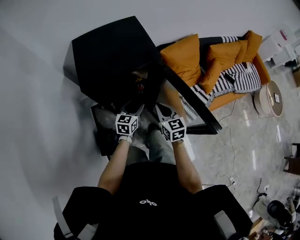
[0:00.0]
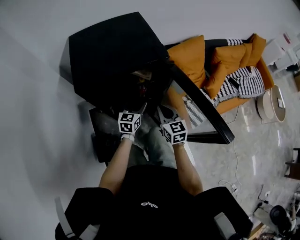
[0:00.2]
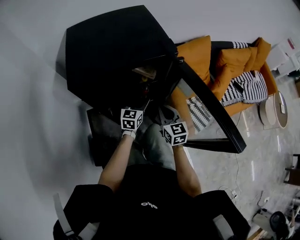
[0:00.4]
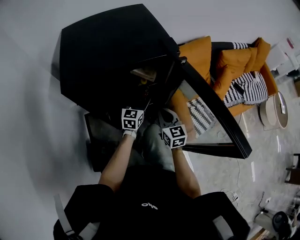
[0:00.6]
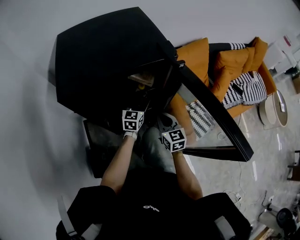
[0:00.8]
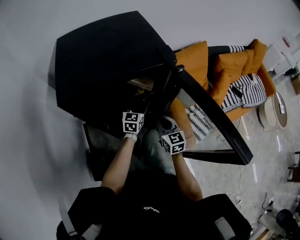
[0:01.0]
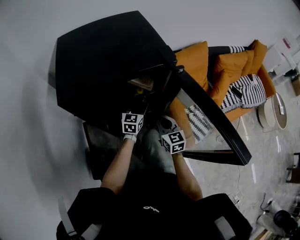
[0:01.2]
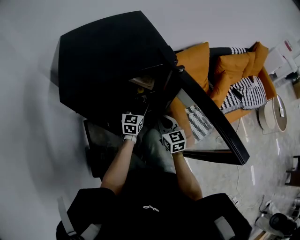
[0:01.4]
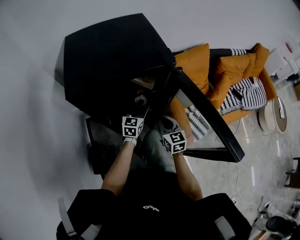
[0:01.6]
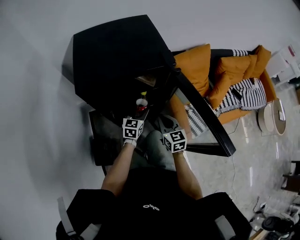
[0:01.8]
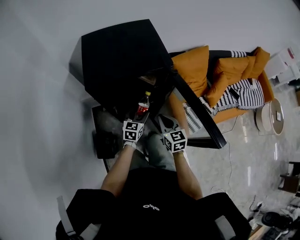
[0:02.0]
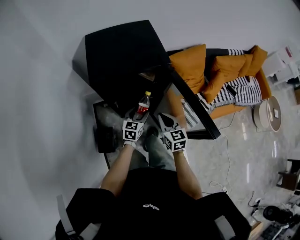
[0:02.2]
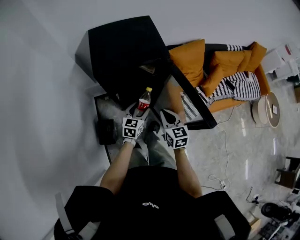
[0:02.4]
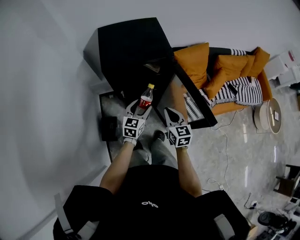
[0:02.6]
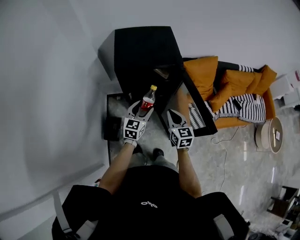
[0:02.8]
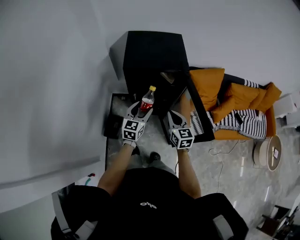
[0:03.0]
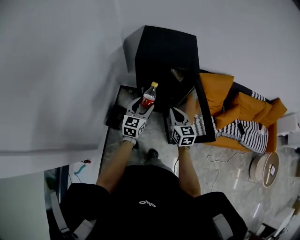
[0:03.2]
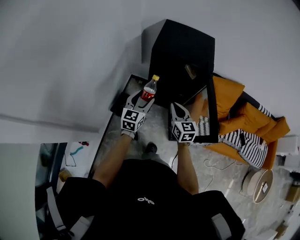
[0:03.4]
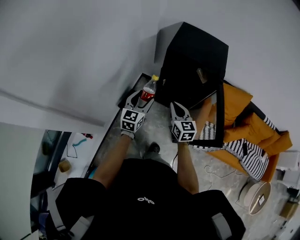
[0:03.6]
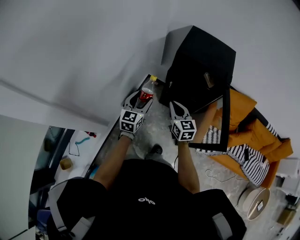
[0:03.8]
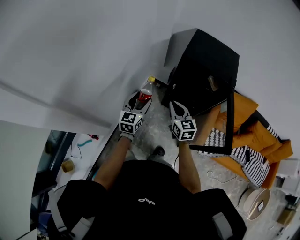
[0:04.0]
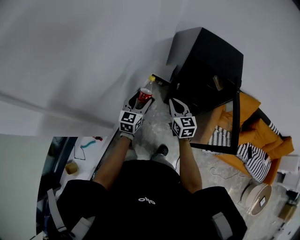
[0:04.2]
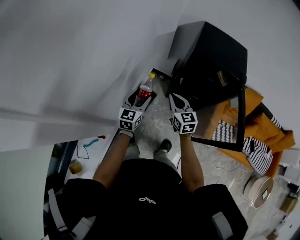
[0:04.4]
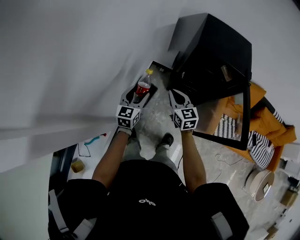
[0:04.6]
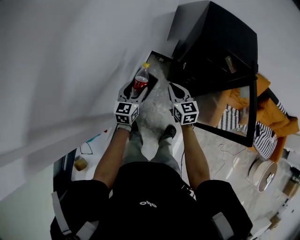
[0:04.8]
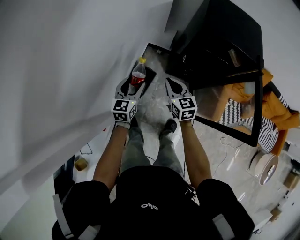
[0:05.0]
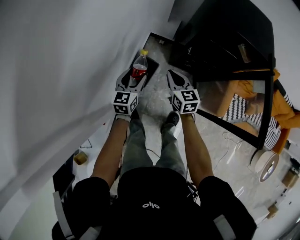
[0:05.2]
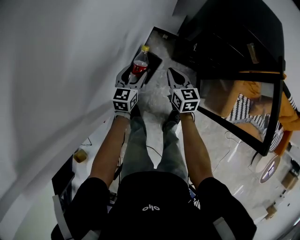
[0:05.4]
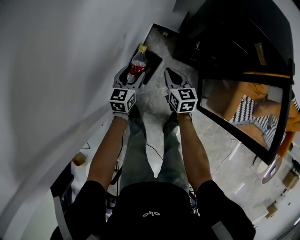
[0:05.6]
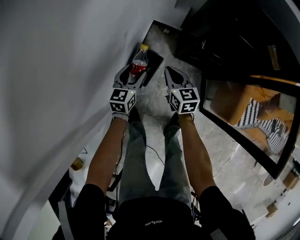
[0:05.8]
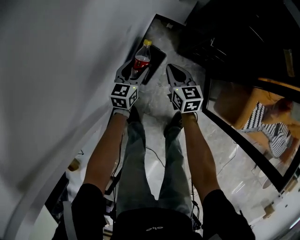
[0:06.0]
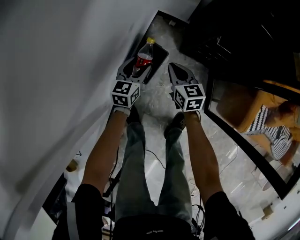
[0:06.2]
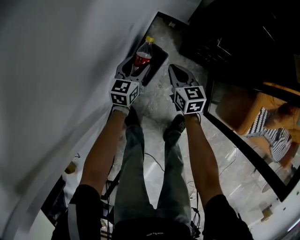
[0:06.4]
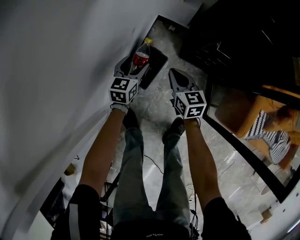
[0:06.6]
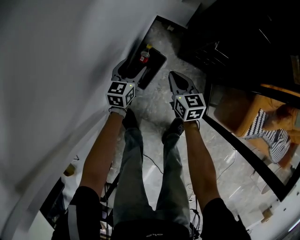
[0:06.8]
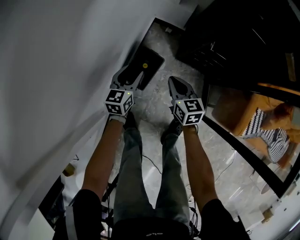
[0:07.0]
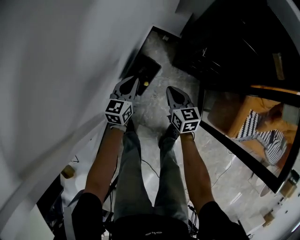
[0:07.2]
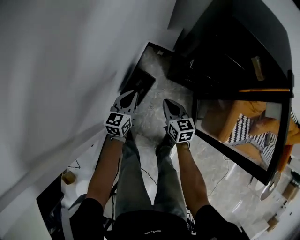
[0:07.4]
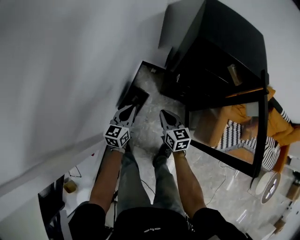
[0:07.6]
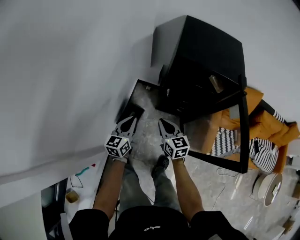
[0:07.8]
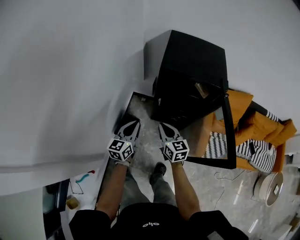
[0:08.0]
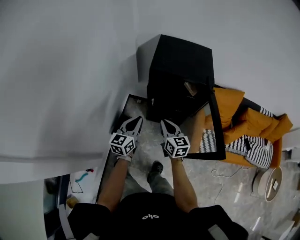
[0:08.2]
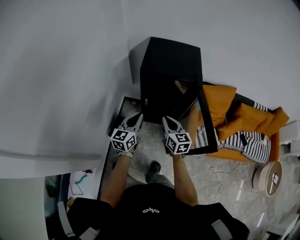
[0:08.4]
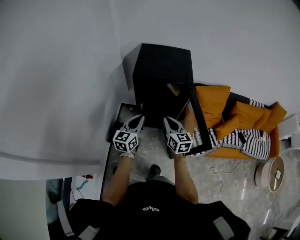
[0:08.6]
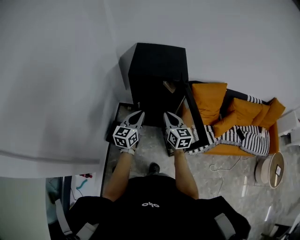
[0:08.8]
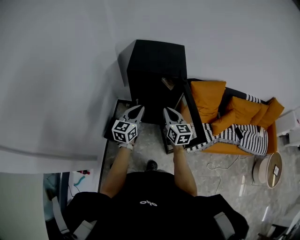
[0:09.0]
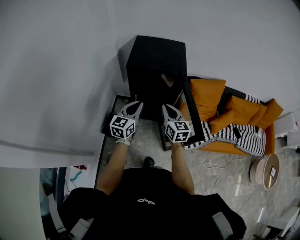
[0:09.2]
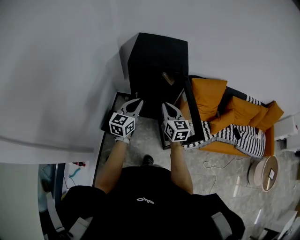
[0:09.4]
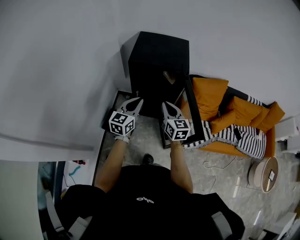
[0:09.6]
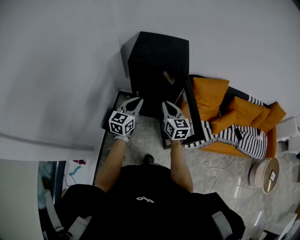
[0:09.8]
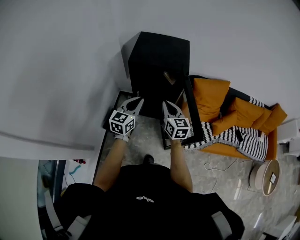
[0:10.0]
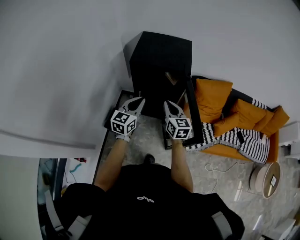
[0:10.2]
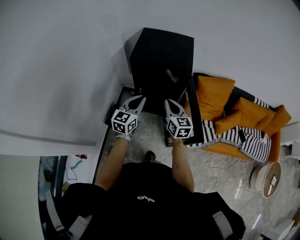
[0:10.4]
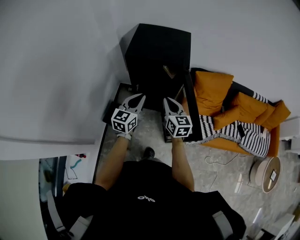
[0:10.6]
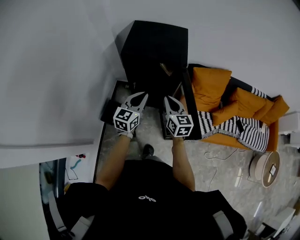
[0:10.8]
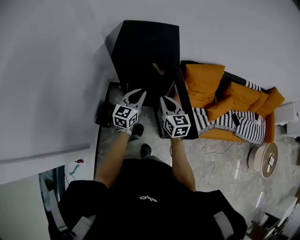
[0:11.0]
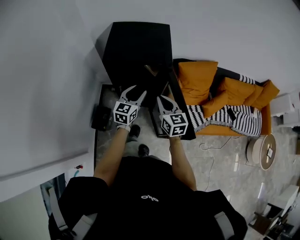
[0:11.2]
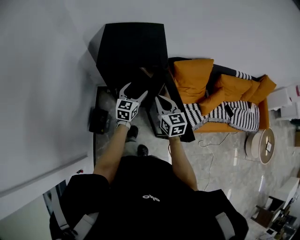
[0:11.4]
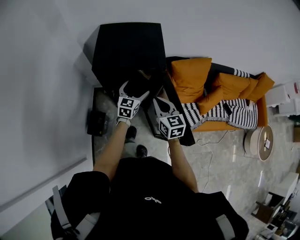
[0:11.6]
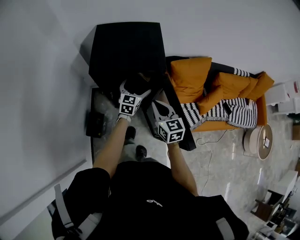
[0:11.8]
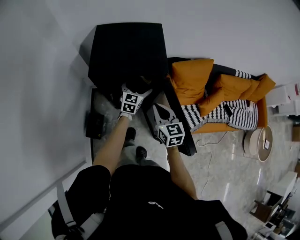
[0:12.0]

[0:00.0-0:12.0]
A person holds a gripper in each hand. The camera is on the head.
0:00.0 to 0:01.6: The right gripper heads downward, covering about 15 cm. The left gripper goes approximately 15 cm downward and forward.
0:01.6 to 0:03.0: The two grippers go roughly 35 cm upward and backward.
0:03.0 to 0:04.4: The left gripper shifts by about 30 cm, and swivels roughly 20 degrees, while the right gripper ends up some 30 cm from where it was, and swivels some 30 degrees.
0:04.4 to 0:06.0: Both grippers travel together downward, roughly 40 cm.
0:06.0 to 0:07.6: The left gripper goes some 20 cm upward, and closes its fingers. Meanwhile the right gripper moves upward, backward and to the right, approximately 20 cm.
0:07.6 to 0:09.0: The grippers both shift upward and to the right by some 40 cm. The left gripper rotates some 20 degrees; the right gripper changes its angle by roughly 20 degrees.
0:09.0 to 0:10.4: The grippers move only a little.
0:10.4 to 0:12.0: The right gripper is displaced forward by approximately 10 cm, while the left gripper is displaced forward, downward and to the right by some 30 cm, and opens its fingers.

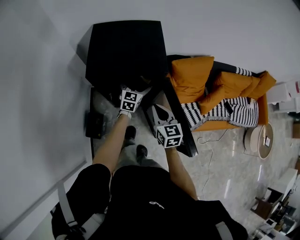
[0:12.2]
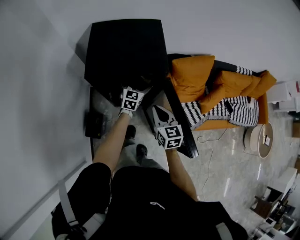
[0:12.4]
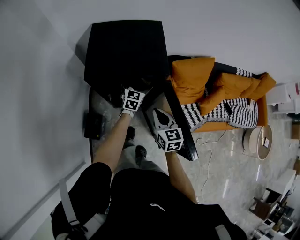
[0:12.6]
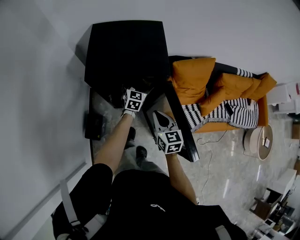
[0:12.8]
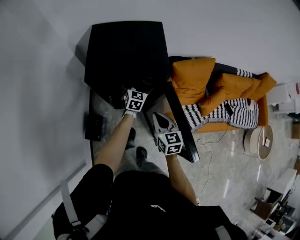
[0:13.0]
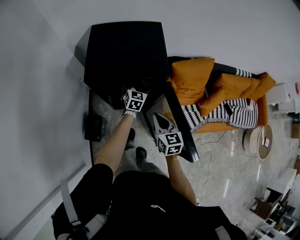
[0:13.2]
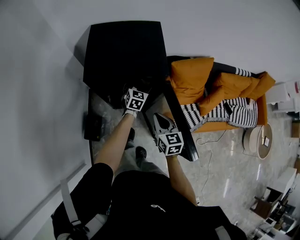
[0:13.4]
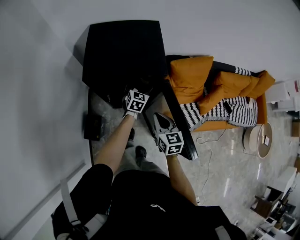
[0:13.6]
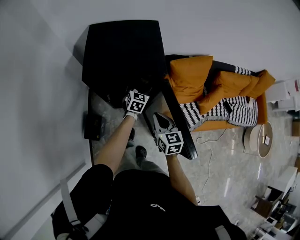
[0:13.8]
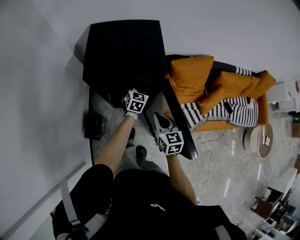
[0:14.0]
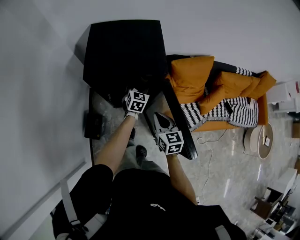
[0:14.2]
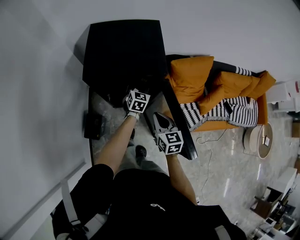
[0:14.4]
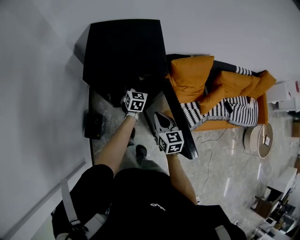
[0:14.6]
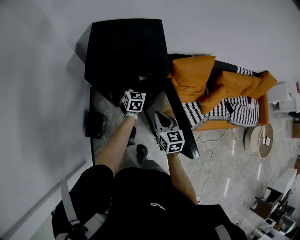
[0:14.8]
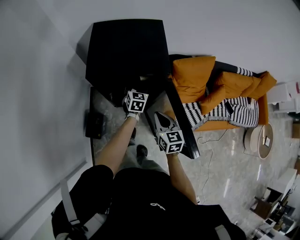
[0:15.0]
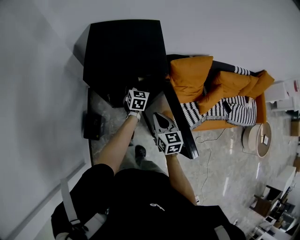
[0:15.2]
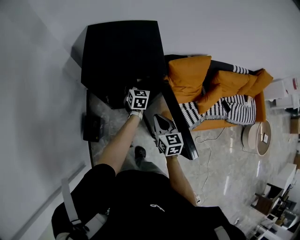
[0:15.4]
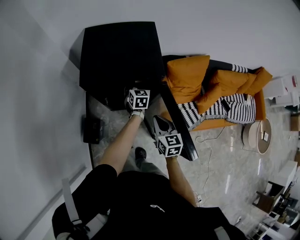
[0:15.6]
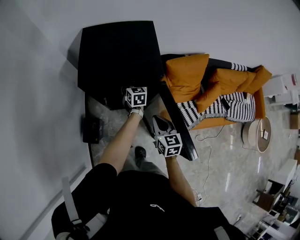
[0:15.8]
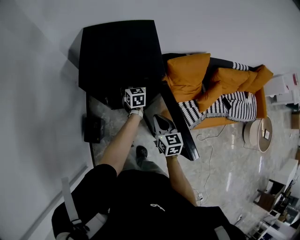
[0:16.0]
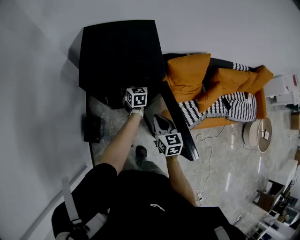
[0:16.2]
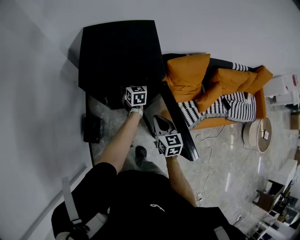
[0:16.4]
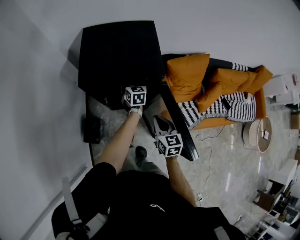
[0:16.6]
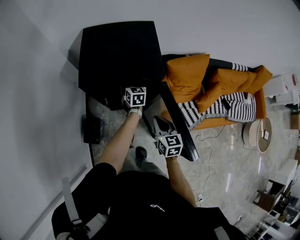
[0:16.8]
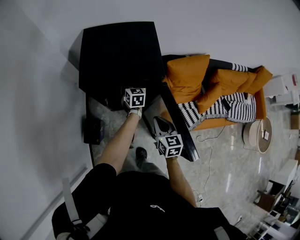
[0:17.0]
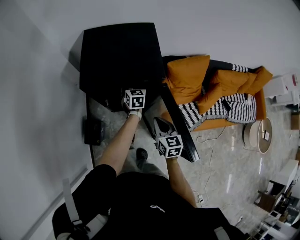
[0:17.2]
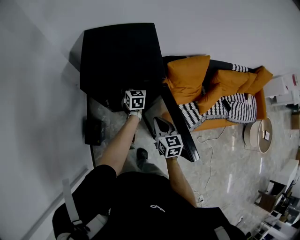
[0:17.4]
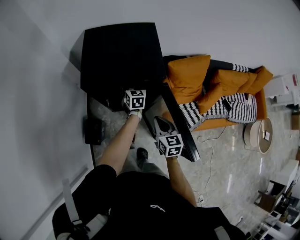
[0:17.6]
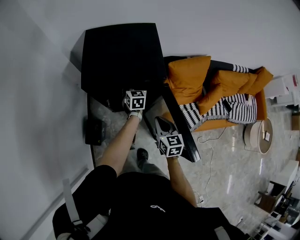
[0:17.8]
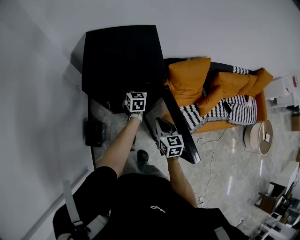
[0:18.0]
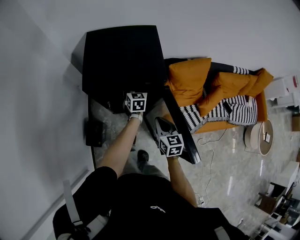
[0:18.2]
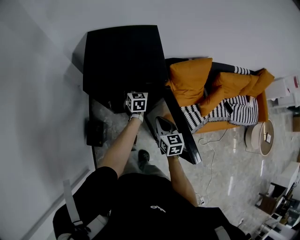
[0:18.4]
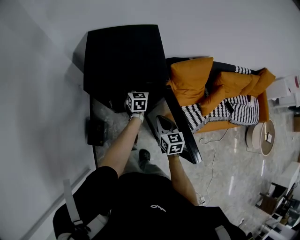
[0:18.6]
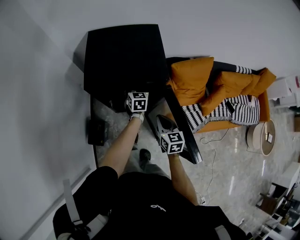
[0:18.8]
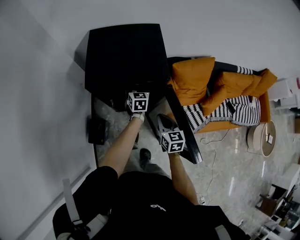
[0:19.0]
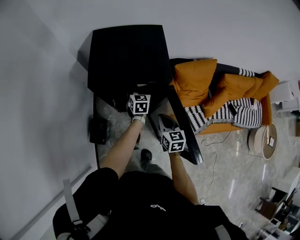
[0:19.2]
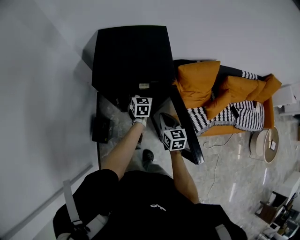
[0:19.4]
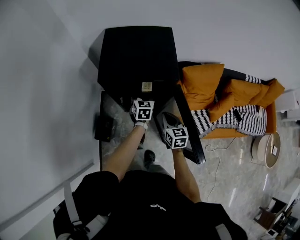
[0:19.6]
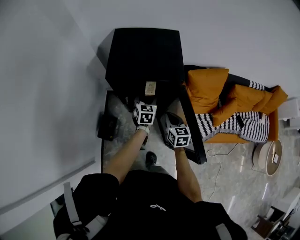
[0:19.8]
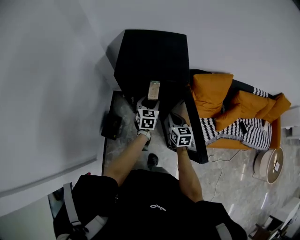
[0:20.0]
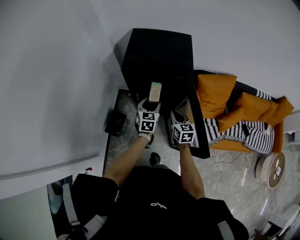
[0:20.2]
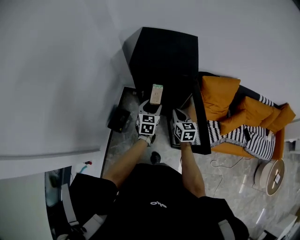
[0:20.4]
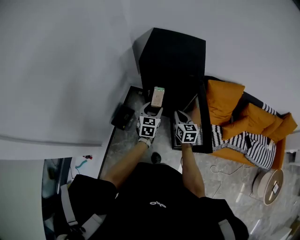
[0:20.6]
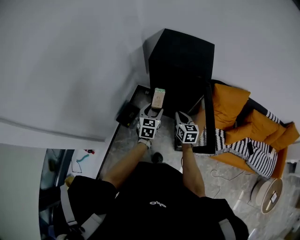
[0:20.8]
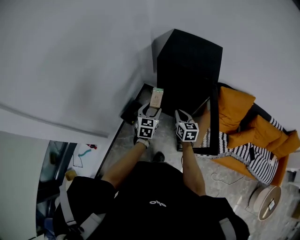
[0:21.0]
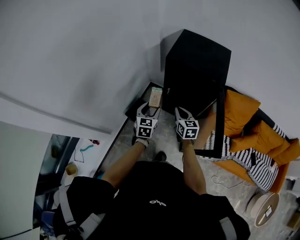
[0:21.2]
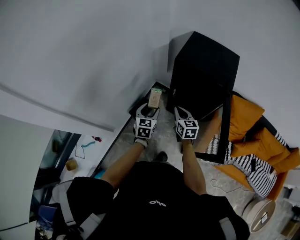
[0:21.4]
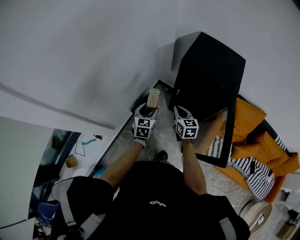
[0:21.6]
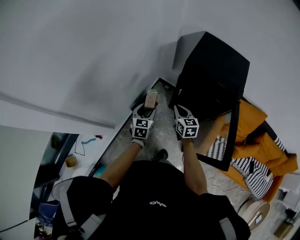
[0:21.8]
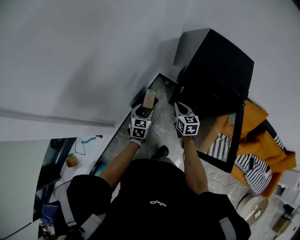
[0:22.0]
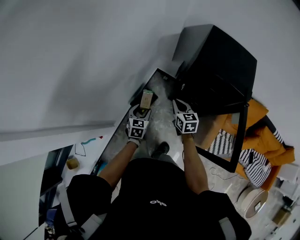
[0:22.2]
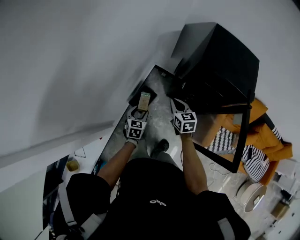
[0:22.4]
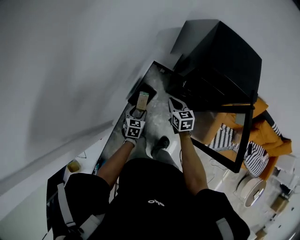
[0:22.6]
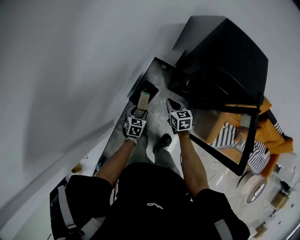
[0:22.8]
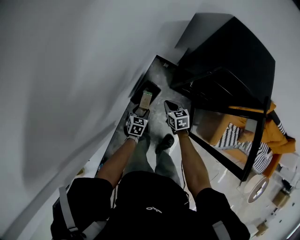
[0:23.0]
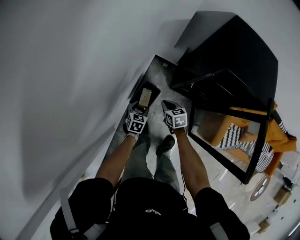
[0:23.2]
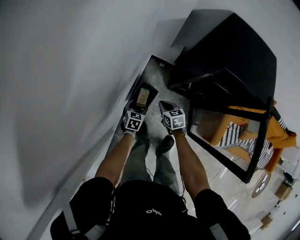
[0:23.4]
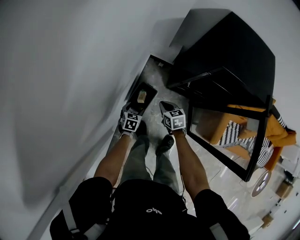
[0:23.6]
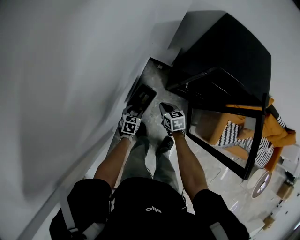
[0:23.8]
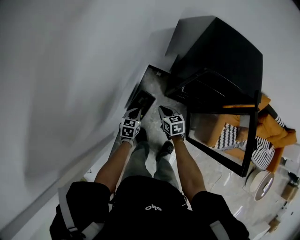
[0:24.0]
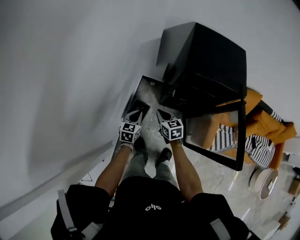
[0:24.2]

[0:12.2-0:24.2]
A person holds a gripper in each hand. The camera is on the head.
0:12.2 to 0:13.8: The left gripper closes.
0:13.8 to 0:15.2: There are only small adjustments of the grippers.
0:15.2 to 0:16.6: The grippers move only a little.
0:16.6 to 0:18.2: Both grippers stay put.
0:18.2 to 0:19.8: The left gripper heads backward, covering some 10 cm.
0:19.8 to 0:21.2: The right gripper travels to the left and backward by roughly 15 cm, and changes its angle by some 20 degrees, while the left gripper is displaced to the left and backward by roughly 30 cm, and turns by some 20 degrees.
0:21.2 to 0:22.6: The left gripper shifts some 30 cm to the left and downward, while the right gripper travels to the left, forward and downward by roughly 25 cm.
0:22.6 to 0:24.2: The left gripper travels forward and to the right by some 10 cm, reaches about 15 cm downward, then returns, and closes, while the right gripper travels downward and back again, some 15 cm each way.
